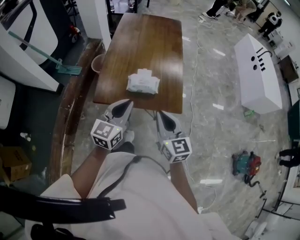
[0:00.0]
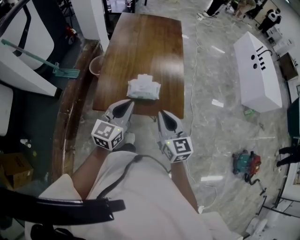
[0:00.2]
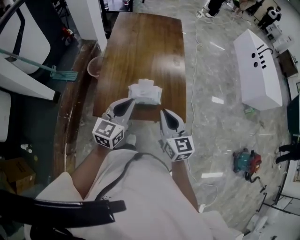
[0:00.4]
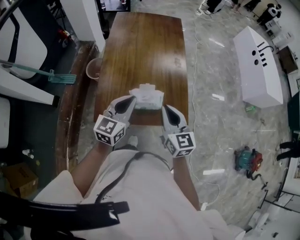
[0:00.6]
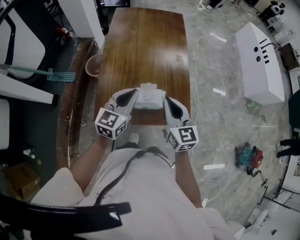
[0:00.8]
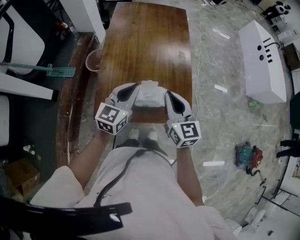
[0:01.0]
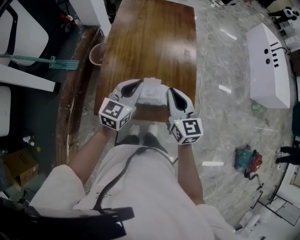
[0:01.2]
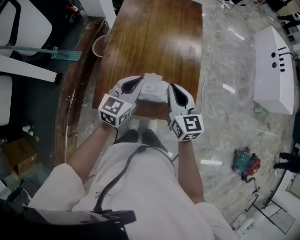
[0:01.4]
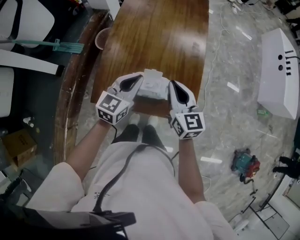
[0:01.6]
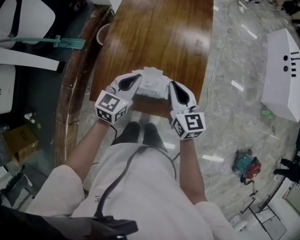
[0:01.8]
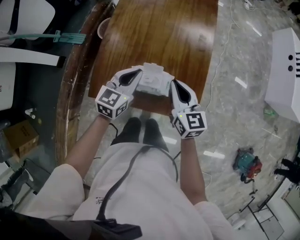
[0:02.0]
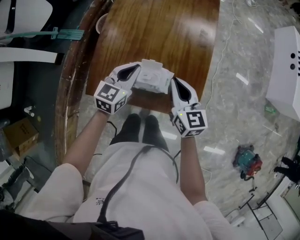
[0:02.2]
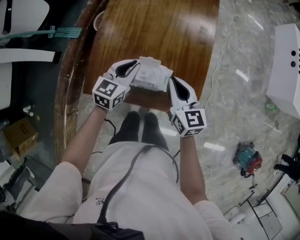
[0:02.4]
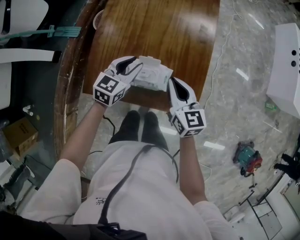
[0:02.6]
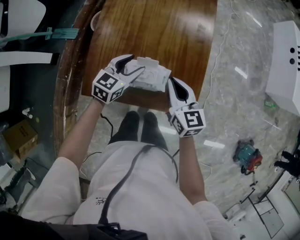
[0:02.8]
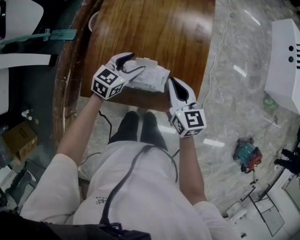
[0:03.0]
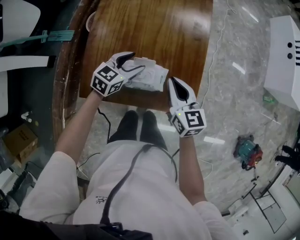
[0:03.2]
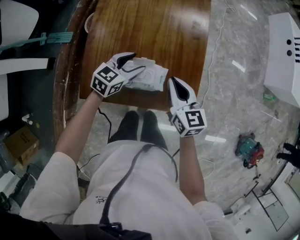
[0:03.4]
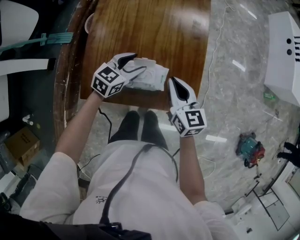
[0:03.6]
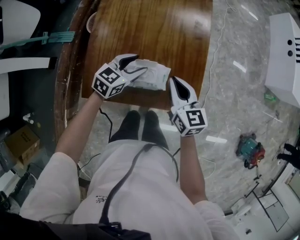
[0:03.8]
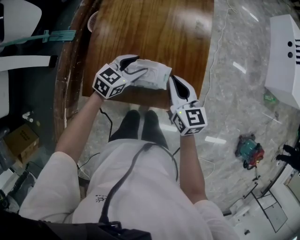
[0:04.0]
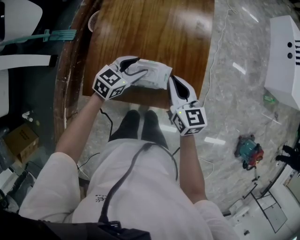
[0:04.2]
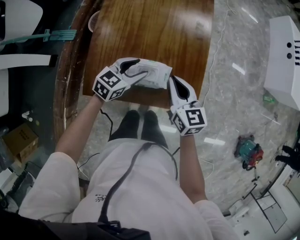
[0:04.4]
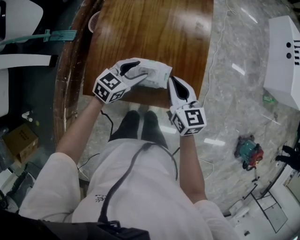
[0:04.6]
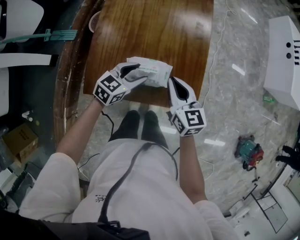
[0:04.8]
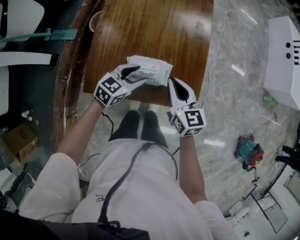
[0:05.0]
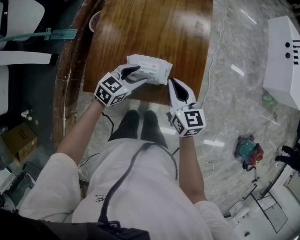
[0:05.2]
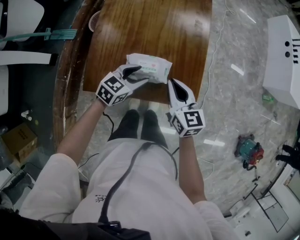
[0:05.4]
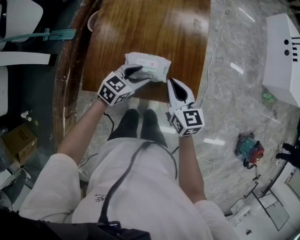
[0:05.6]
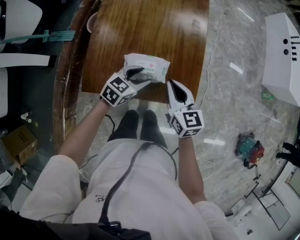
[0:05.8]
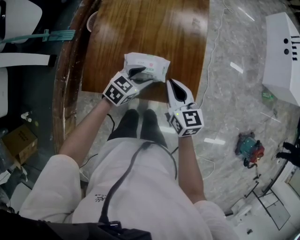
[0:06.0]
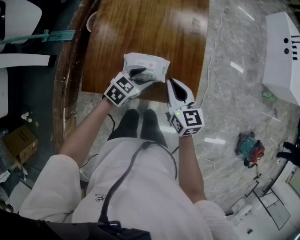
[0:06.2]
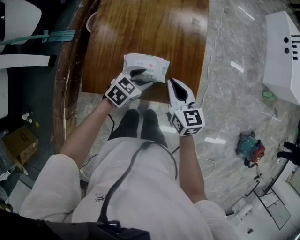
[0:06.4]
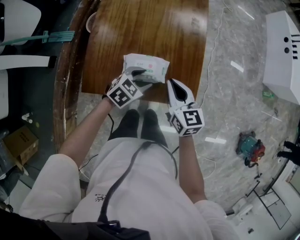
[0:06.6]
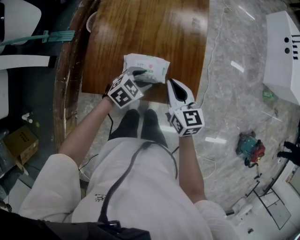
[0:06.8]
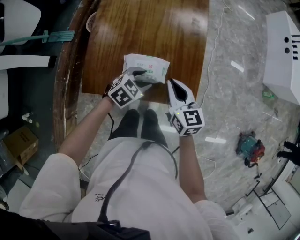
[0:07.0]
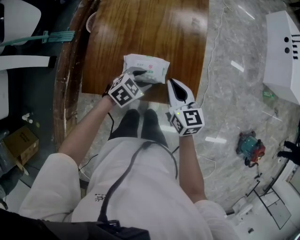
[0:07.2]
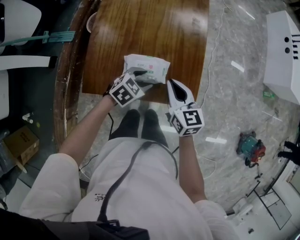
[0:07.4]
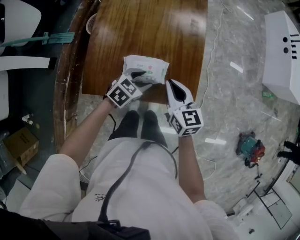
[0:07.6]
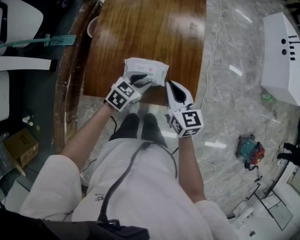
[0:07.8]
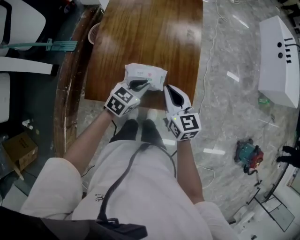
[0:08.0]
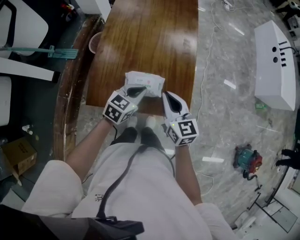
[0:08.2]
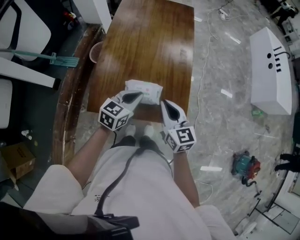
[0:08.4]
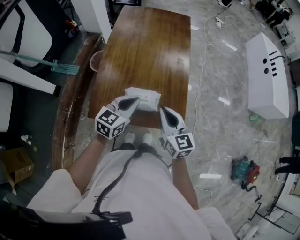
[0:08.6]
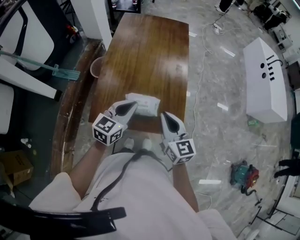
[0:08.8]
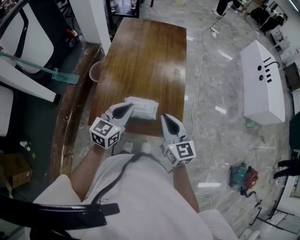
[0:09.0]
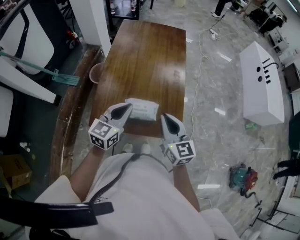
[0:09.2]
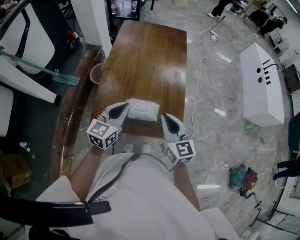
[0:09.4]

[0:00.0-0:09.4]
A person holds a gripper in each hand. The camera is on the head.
0:00.0 to 0:01.6: The grippers both shift forward by approximately 25 cm.
0:01.6 to 0:03.2: The left gripper travels downward and forward by roughly 15 cm, rotates approximately 20 degrees, and opens. Meanwhile the right gripper shifts roughly 10 cm downward.
0:03.2 to 0:04.8: The left gripper is displaced backward by some 5 cm.
0:04.8 to 0:06.2: The left gripper ends up some 5 cm from where it was.
0:06.2 to 0:07.8: The grippers move only a little.
0:07.8 to 0:09.4: Both grippers travel together upward, roughly 20 cm. The left gripper turns by roughly 40 degrees, and closes its fingers.

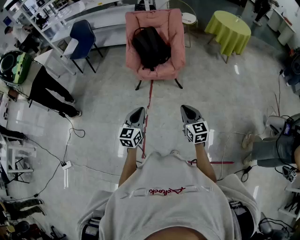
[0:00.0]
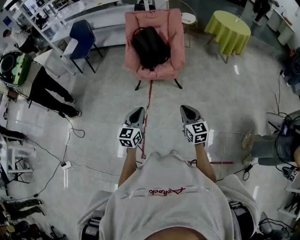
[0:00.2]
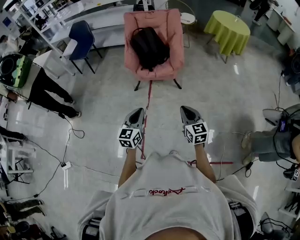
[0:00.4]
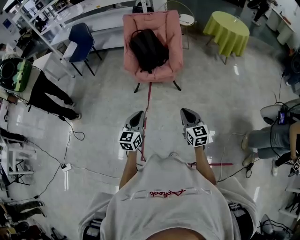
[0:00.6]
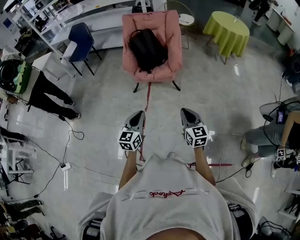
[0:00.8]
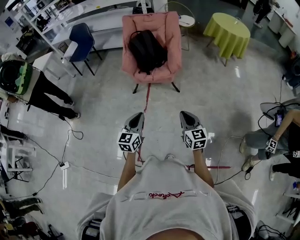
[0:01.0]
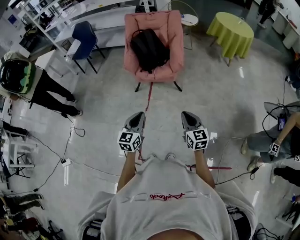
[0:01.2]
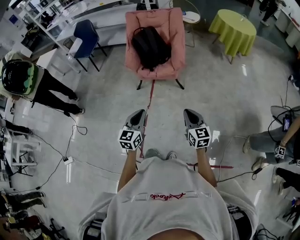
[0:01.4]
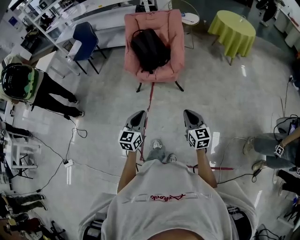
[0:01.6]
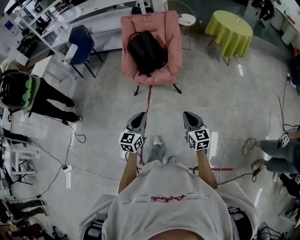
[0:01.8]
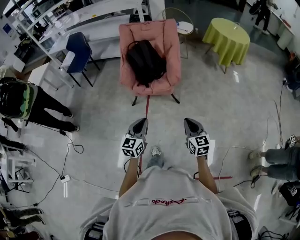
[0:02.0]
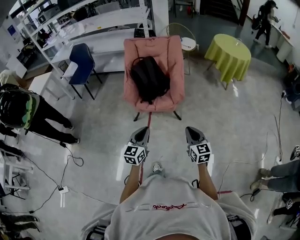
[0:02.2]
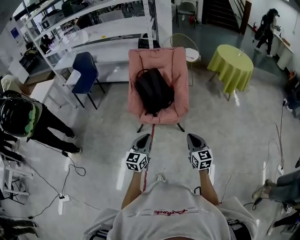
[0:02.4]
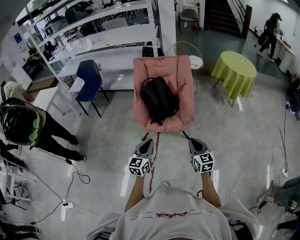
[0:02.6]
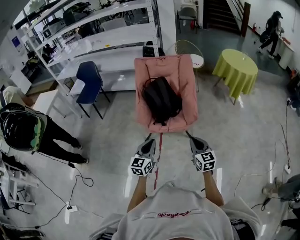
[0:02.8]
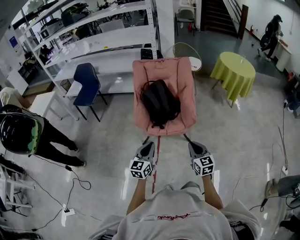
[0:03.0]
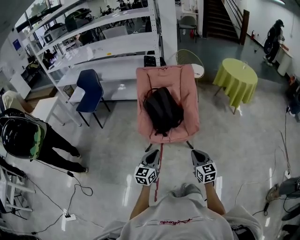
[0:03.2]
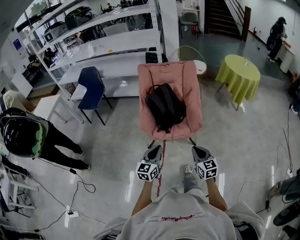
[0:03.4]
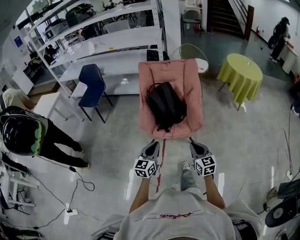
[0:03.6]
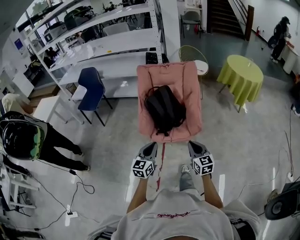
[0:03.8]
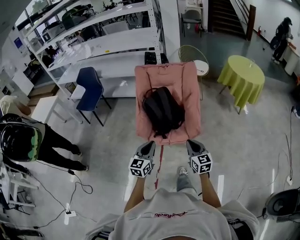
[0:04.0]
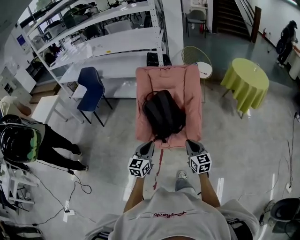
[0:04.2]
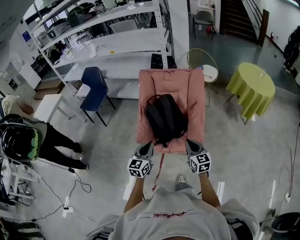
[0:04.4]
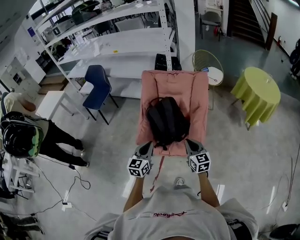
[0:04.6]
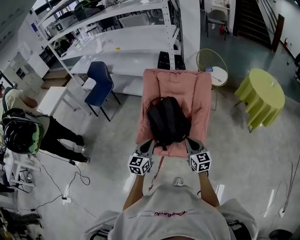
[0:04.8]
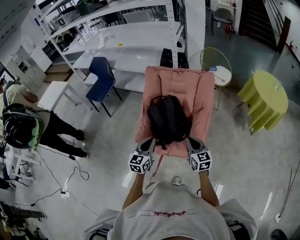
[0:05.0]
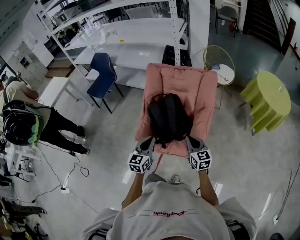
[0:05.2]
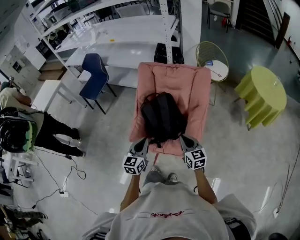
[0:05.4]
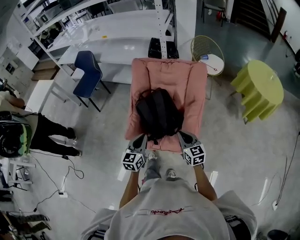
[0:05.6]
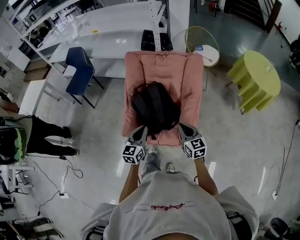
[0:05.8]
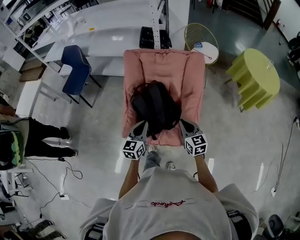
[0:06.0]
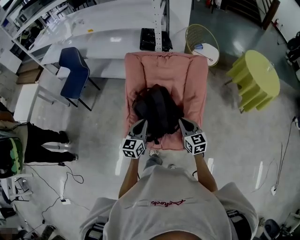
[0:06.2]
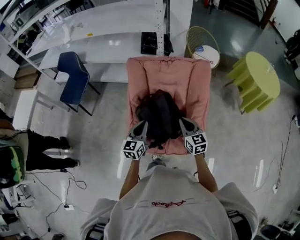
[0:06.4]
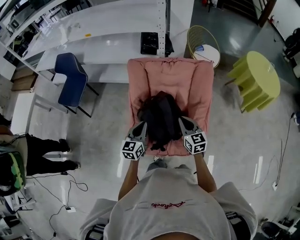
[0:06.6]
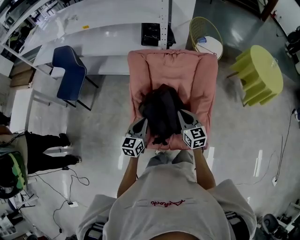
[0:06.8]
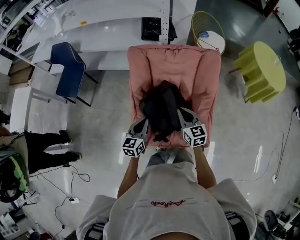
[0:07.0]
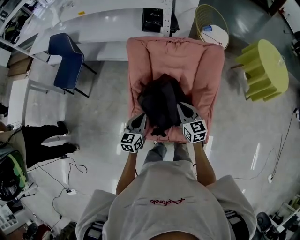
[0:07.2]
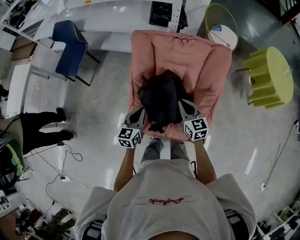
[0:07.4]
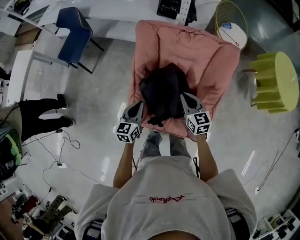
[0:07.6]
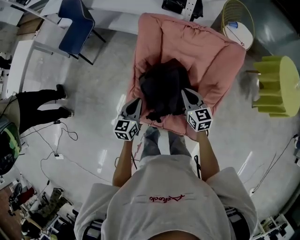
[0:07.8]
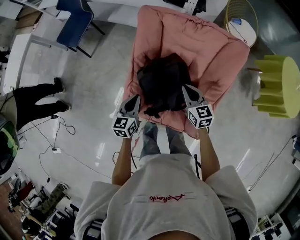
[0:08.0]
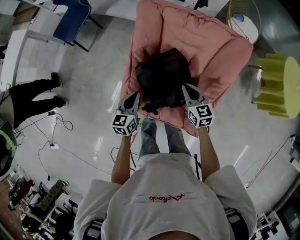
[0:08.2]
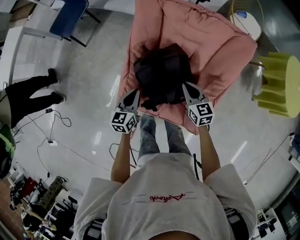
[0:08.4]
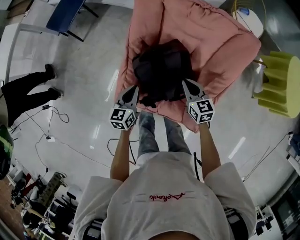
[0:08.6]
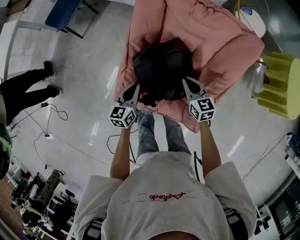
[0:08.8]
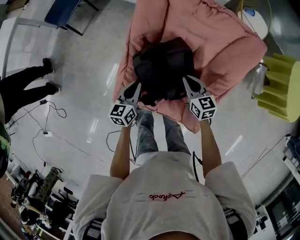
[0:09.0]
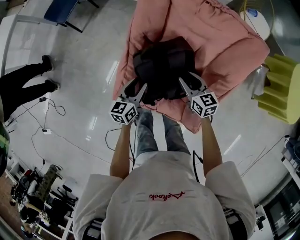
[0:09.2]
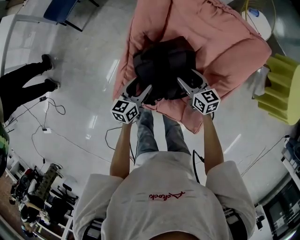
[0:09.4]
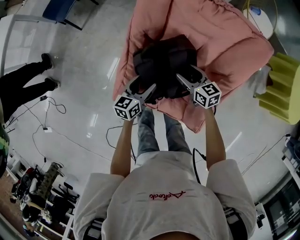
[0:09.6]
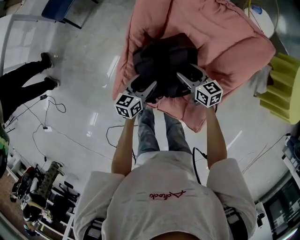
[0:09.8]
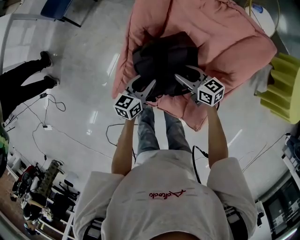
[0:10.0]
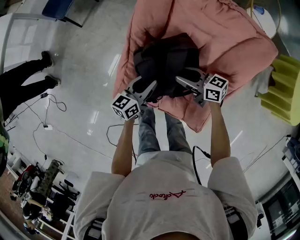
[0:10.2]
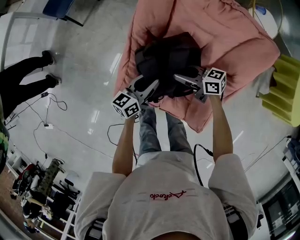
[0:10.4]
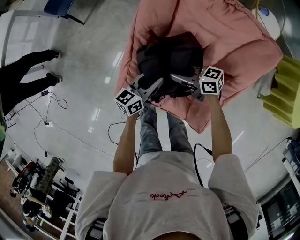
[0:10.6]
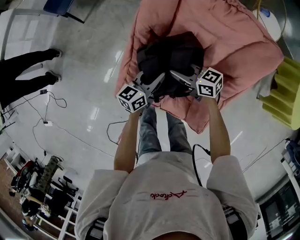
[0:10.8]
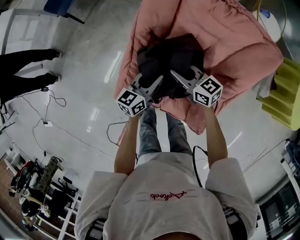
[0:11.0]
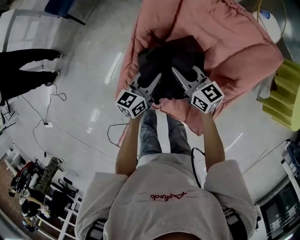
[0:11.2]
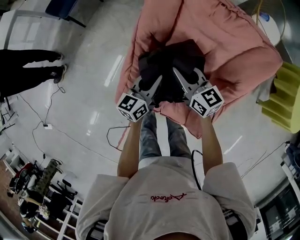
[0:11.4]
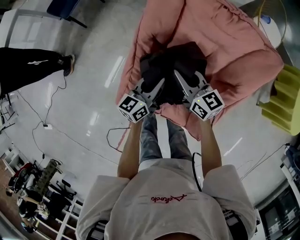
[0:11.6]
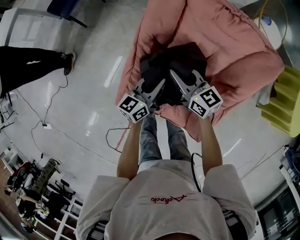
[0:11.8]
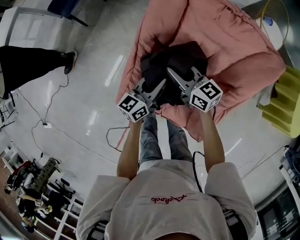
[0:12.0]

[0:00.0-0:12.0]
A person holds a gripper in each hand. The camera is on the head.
0:00.0 to 0:01.6: The grippers both shift to the right by some 10 cm.
0:01.6 to 0:03.0: The grippers both shift forward and to the left by some 25 cm.
0:03.0 to 0:04.4: The grippers both shift forward by some 25 cm.
0:04.4 to 0:06.0: The grippers both shift forward by roughly 20 cm.
0:06.0 to 0:07.6: The left gripper travels forward, to the left and downward by about 20 cm; the right gripper heads forward and to the left, covering approximately 20 cm.
0:07.6 to 0:09.0: Both grippers travel together downward, approximately 15 cm.
0:09.0 to 0:10.4: The left gripper is displaced to the right by some 5 cm, and opens up. The right gripper goes about 5 cm to the left, swivels roughly 40 degrees, and opens up.
0:10.4 to 0:12.0: The right gripper heads forward and upward, covering roughly 10 cm, turns by roughly 20 degrees, and closes.

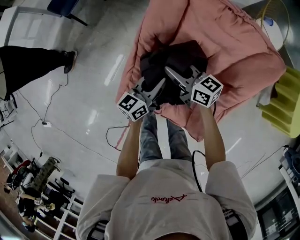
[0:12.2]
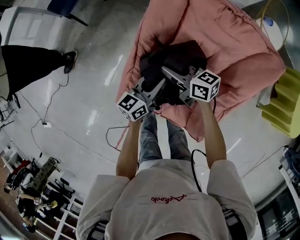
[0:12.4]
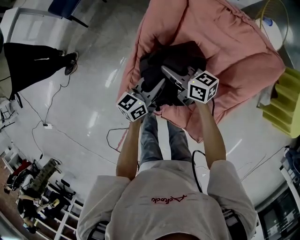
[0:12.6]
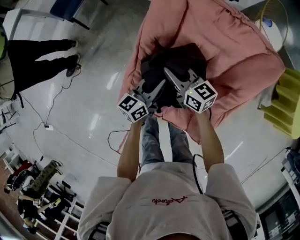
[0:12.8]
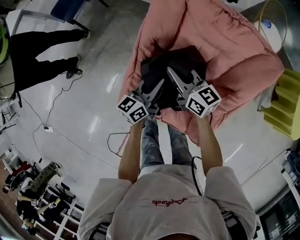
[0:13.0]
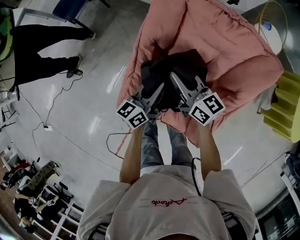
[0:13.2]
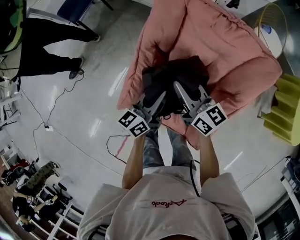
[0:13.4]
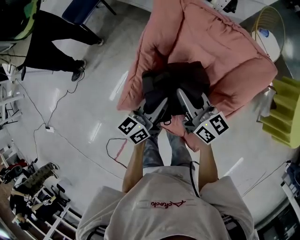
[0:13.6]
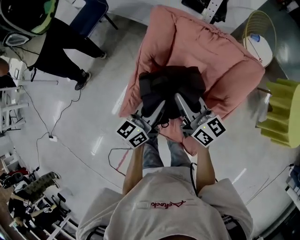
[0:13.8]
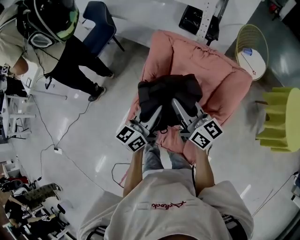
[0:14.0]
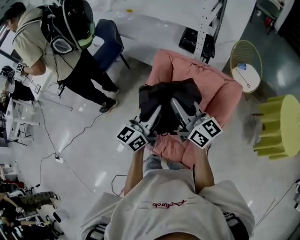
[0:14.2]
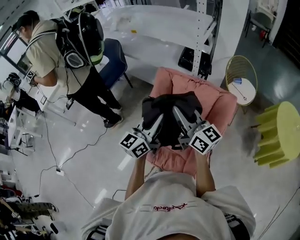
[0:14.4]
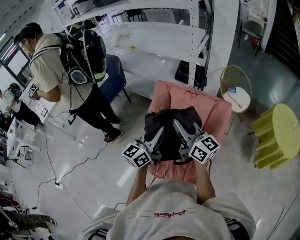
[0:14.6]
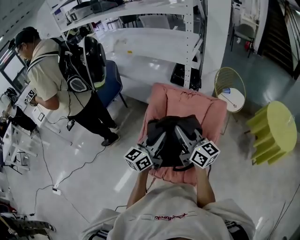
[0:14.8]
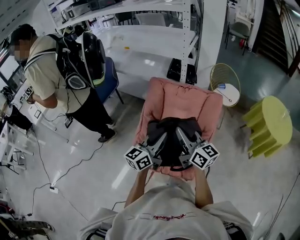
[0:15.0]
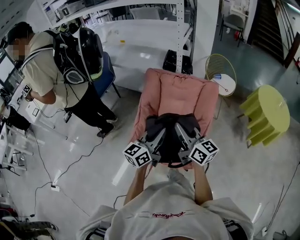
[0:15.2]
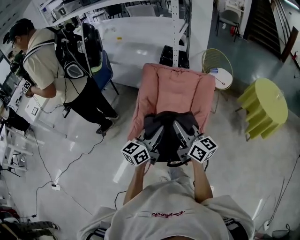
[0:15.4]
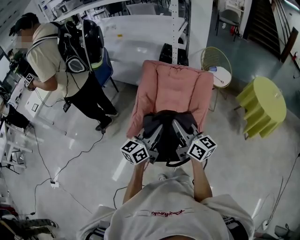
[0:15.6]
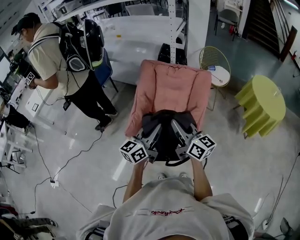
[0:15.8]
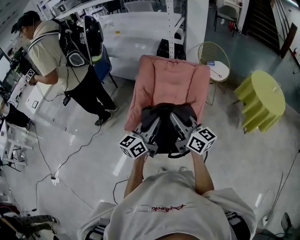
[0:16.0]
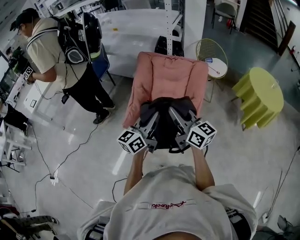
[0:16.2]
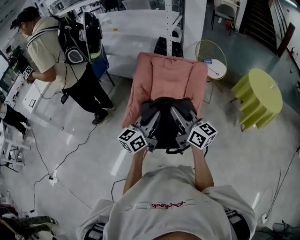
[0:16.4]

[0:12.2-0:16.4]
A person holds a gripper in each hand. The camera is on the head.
0:12.2 to 0:13.6: The grippers both shift upward and backward by roughly 15 cm.
0:13.6 to 0:15.0: The grippers both shift upward and backward by approximately 35 cm. The right gripper rotates approximately 20 degrees, while the left gripper swivels approximately 20 degrees.
0:15.0 to 0:16.4: Both grippers move backward, some 15 cm.
